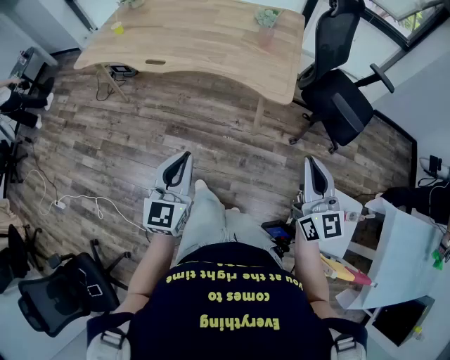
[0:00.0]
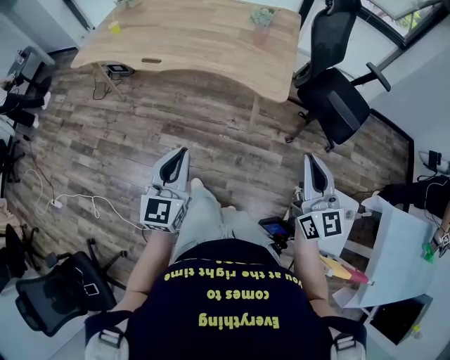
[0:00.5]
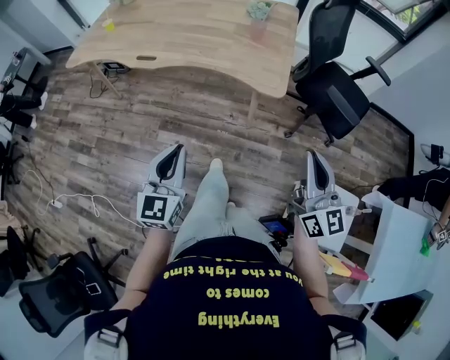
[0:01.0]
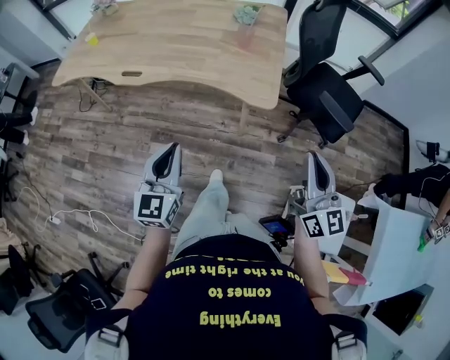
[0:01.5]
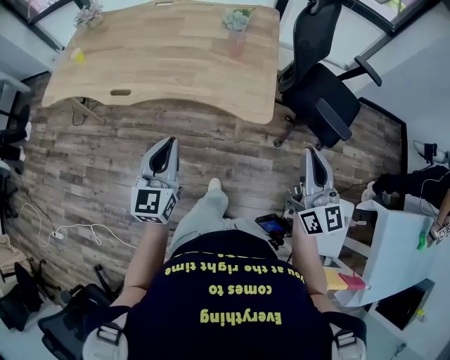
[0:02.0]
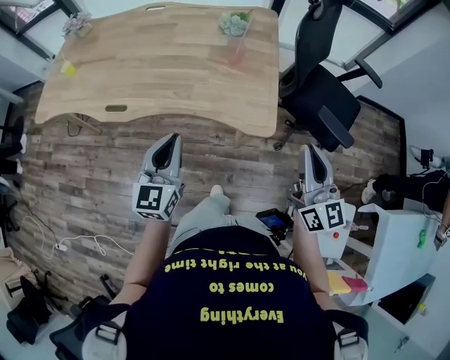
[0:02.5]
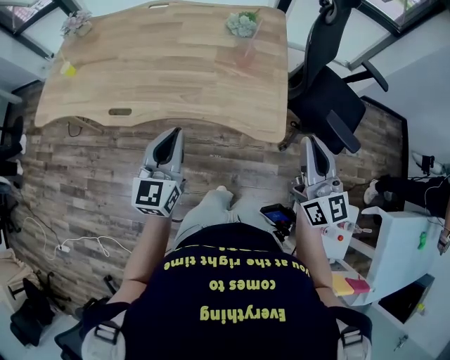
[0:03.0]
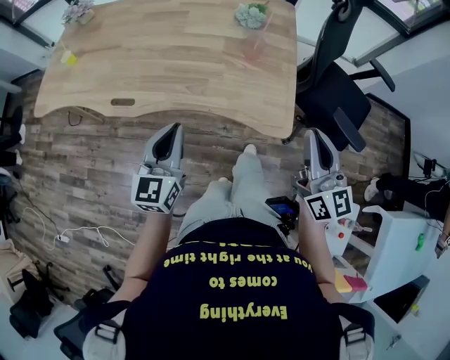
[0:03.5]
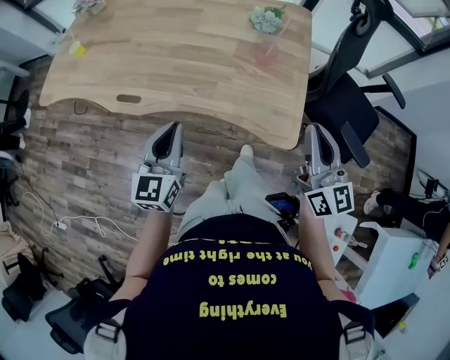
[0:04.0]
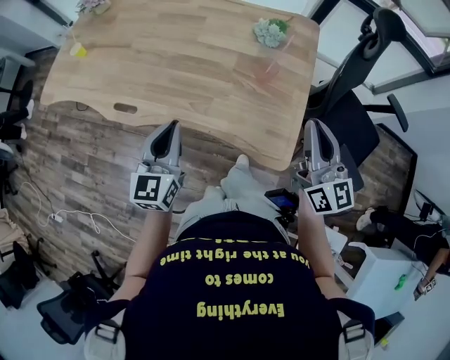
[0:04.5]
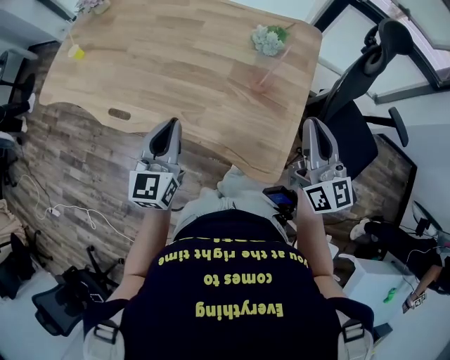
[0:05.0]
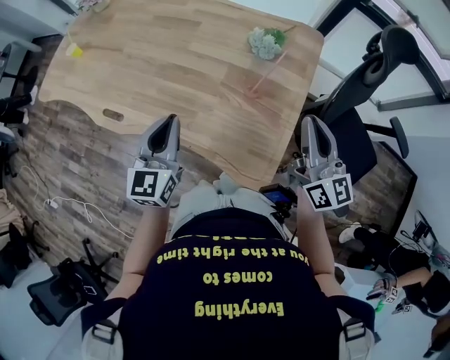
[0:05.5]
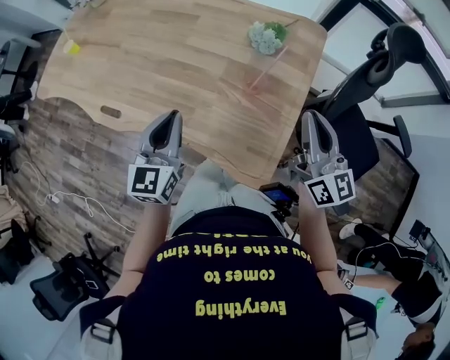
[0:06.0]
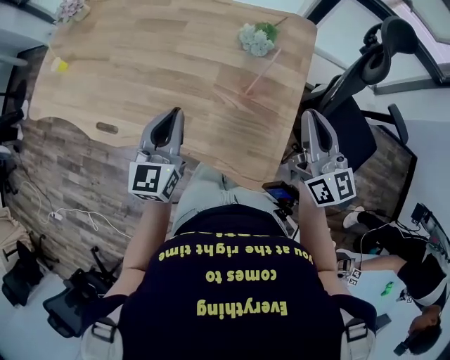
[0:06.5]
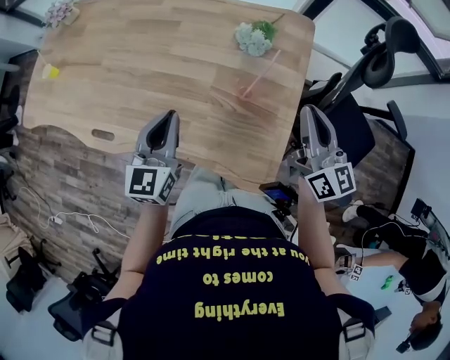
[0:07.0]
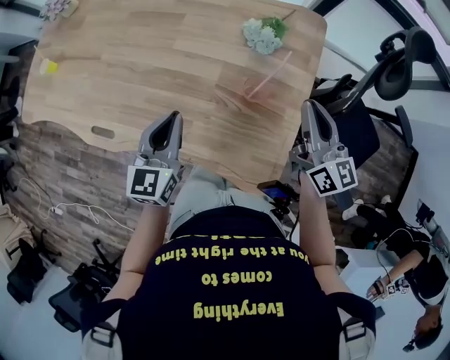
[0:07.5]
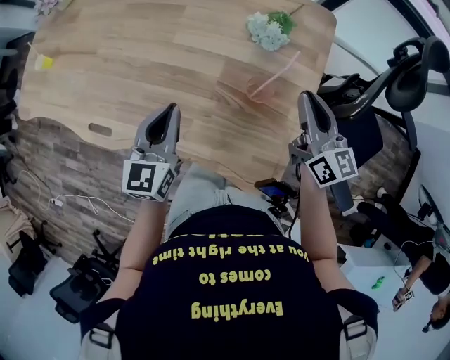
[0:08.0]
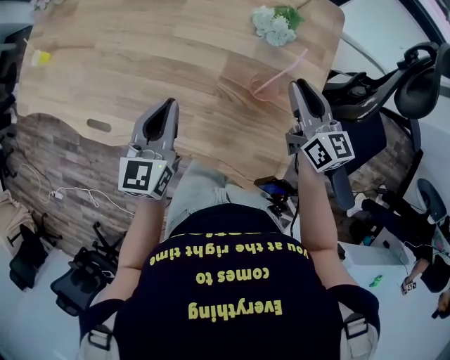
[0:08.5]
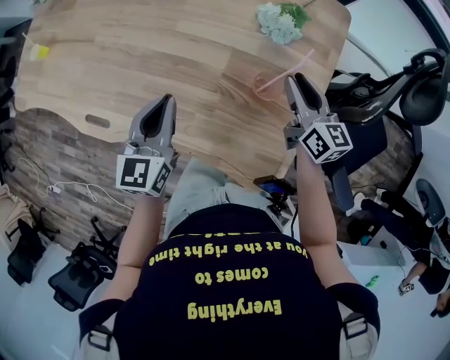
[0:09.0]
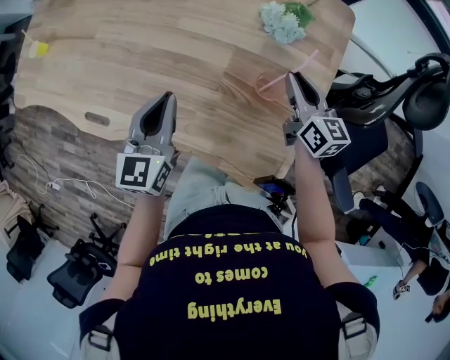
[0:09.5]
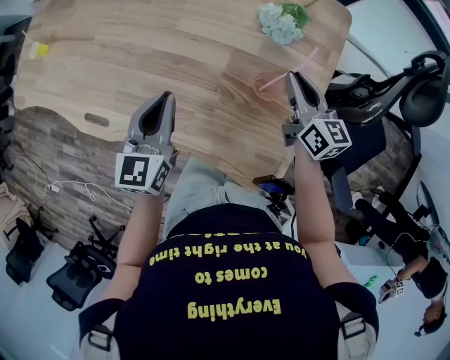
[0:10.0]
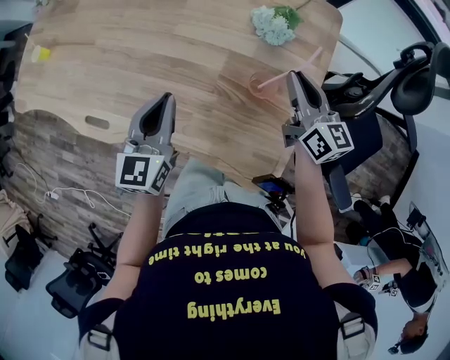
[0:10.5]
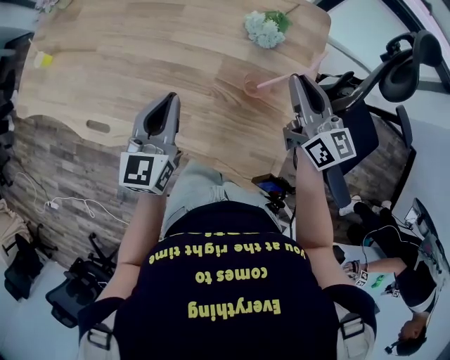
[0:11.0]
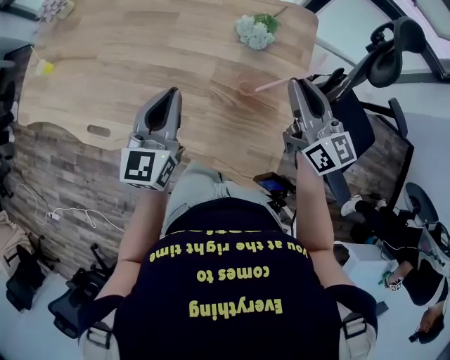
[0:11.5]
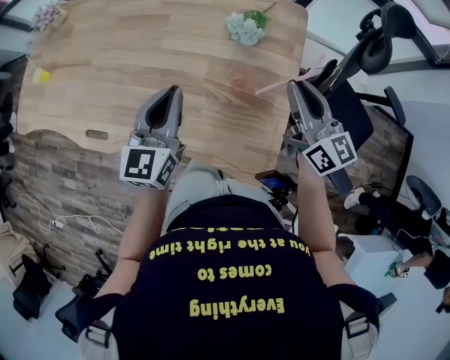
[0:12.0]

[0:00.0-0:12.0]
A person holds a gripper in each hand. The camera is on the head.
0:00.0 to 0:02.0: The two grippers go about 20 cm forward.
0:02.0 to 0:04.0: The grippers both shift forward and to the left by roughly 20 cm.
0:04.0 to 0:06.0: The two grippers go roughly 20 cm forward and to the right.
0:06.0 to 0:08.0: The grippers both shift forward and downward by some 15 cm.
0:08.0 to 0:10.0: The right gripper shifts approximately 10 cm downward.
0:10.0 to 0:12.0: The left gripper goes about 10 cm upward and to the right. The right gripper moves upward and backward, roughly 15 cm.

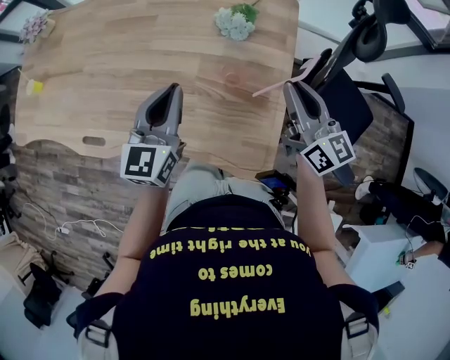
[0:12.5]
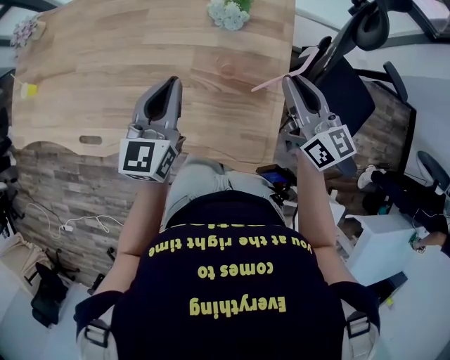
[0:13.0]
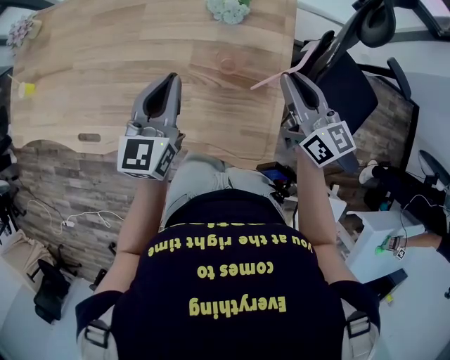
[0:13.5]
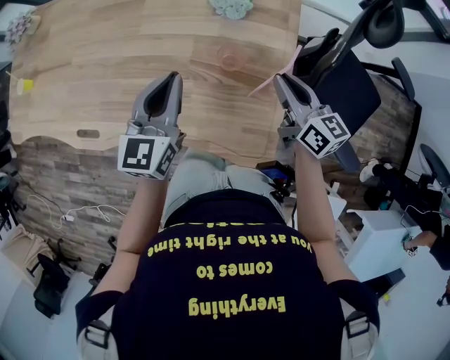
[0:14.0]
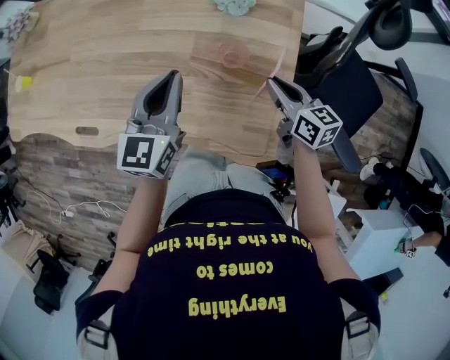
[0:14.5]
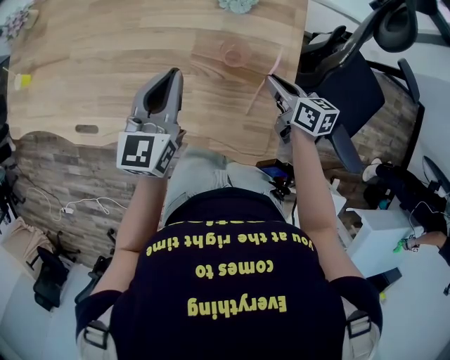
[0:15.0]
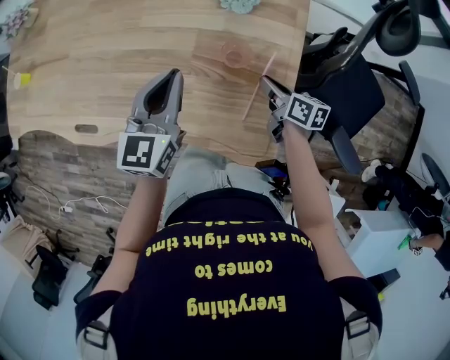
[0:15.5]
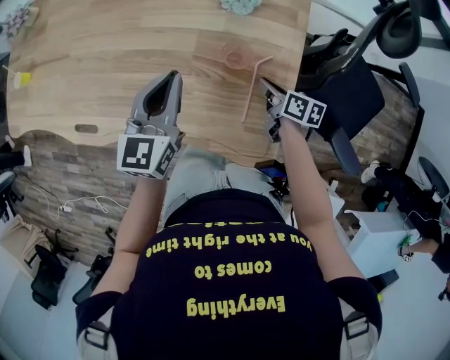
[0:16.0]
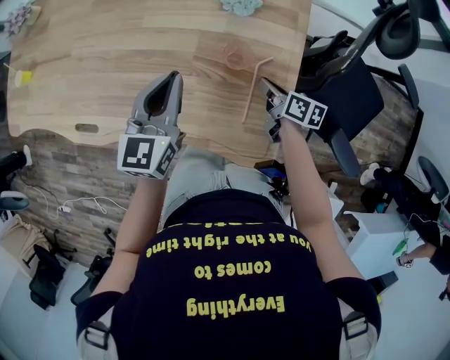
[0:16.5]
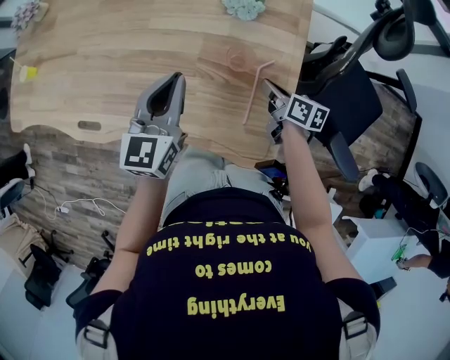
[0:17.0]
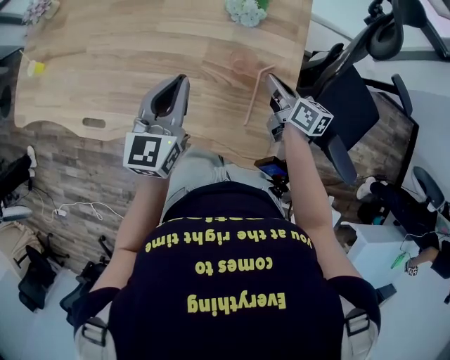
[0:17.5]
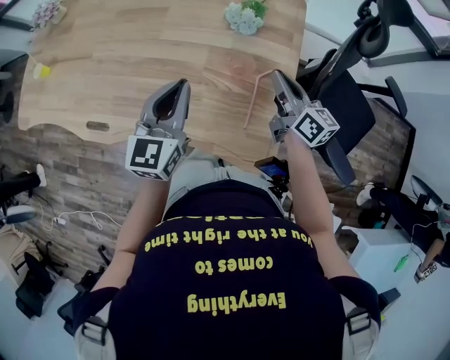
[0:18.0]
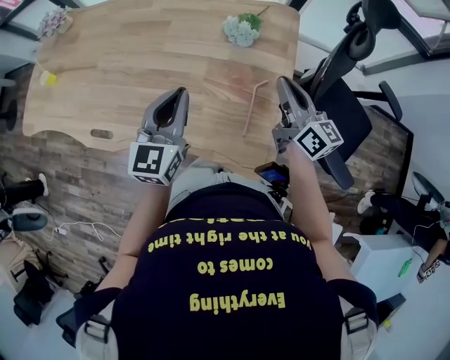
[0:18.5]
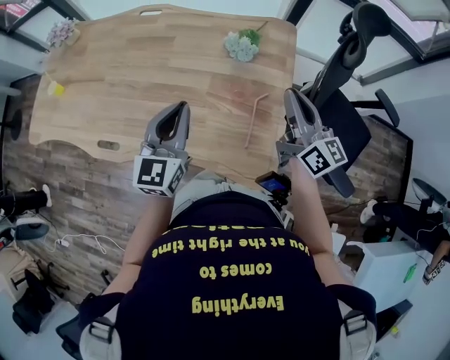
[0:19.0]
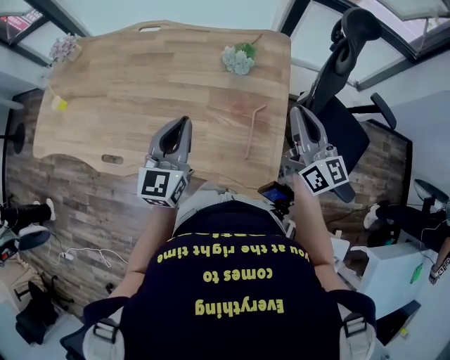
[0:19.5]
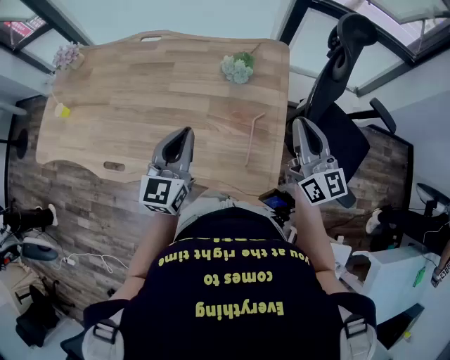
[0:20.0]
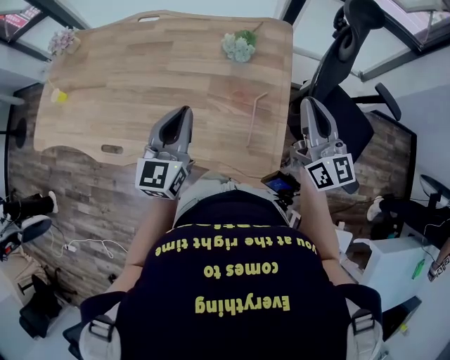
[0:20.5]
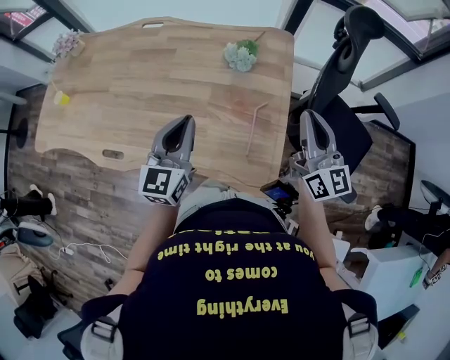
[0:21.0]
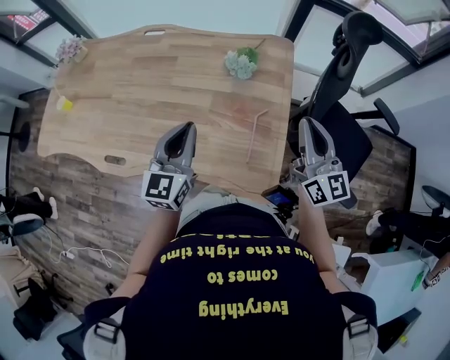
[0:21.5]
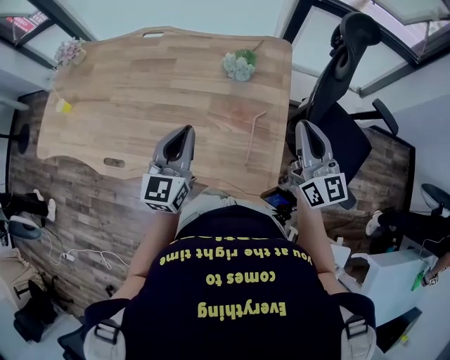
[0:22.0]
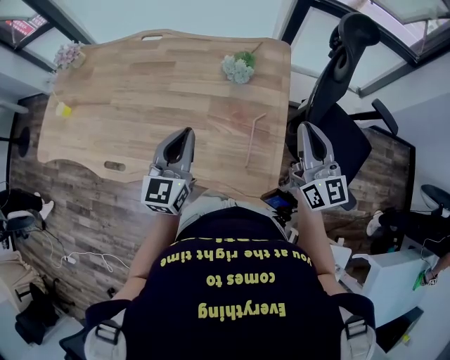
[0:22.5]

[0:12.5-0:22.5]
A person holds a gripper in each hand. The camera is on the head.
0:12.5 to 0:14.5: The right gripper shifts about 15 cm downward, and turns by approximately 30 degrees.
0:14.5 to 0:16.5: The right gripper is displaced downward by about 10 cm, and turns by about 30 degrees.
0:16.5 to 0:18.5: The left gripper shifts about 5 cm upward; the right gripper heads upward, covering about 25 cm, and points its fingers roughly 30 degrees further upward.
0:18.5 to 0:20.5: The right gripper shifts some 10 cm upward and backward, and turns by approximately 20 degrees.
0:20.5 to 0:22.5: Both grippers stay about where they are.

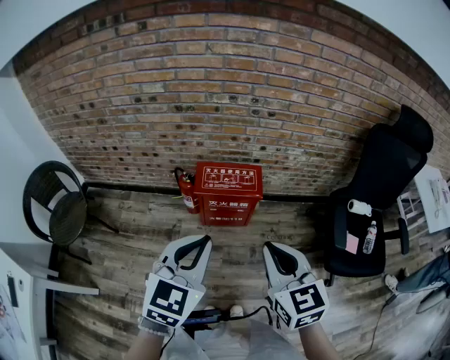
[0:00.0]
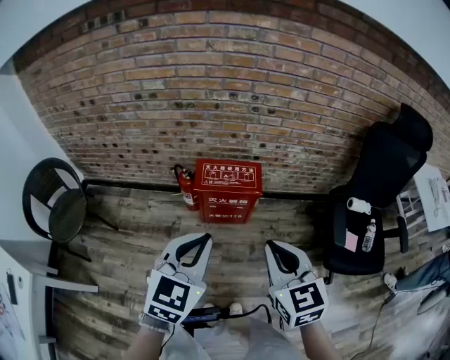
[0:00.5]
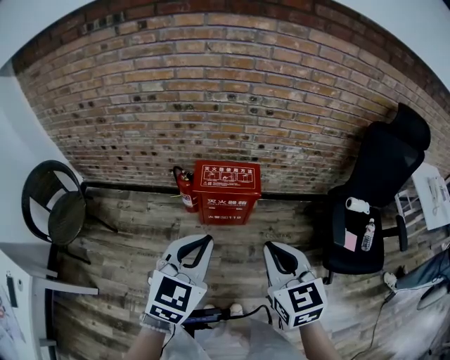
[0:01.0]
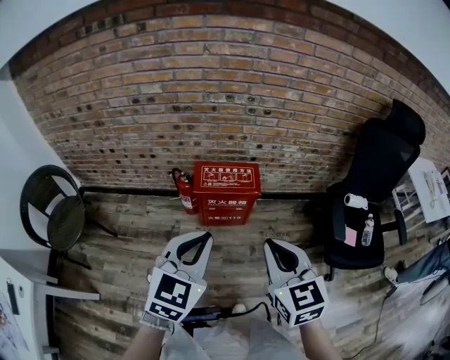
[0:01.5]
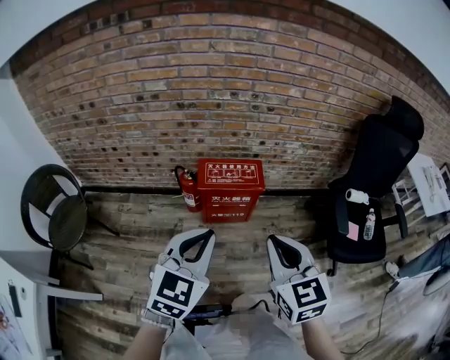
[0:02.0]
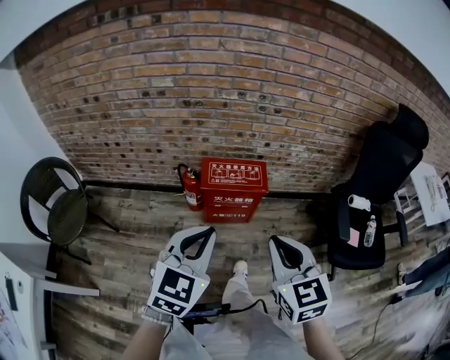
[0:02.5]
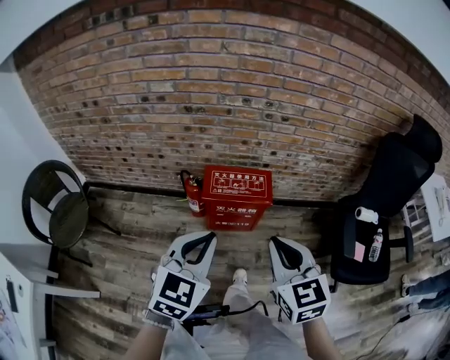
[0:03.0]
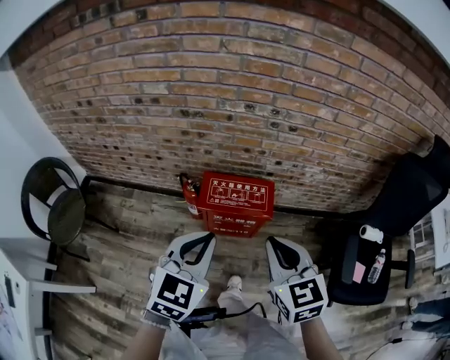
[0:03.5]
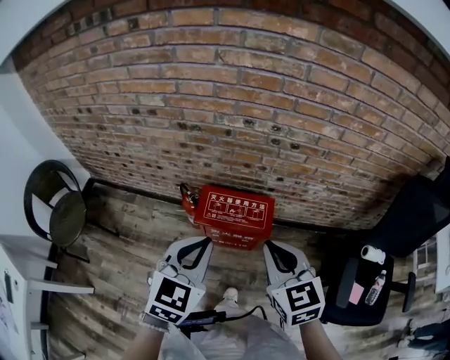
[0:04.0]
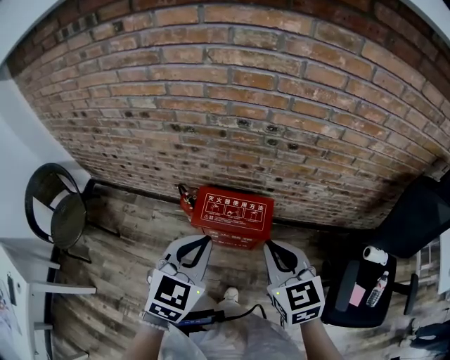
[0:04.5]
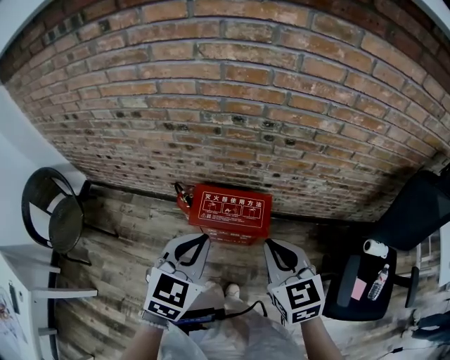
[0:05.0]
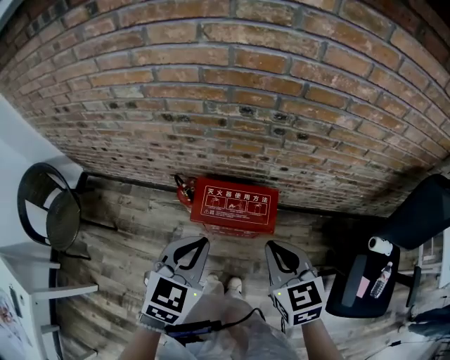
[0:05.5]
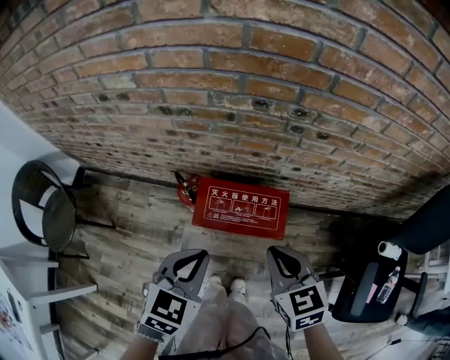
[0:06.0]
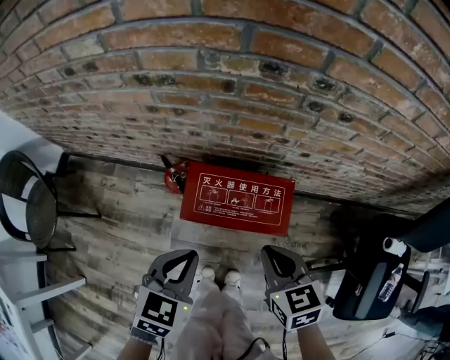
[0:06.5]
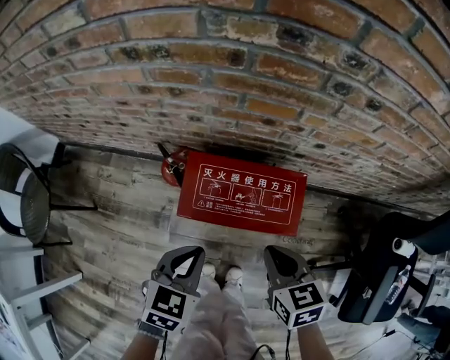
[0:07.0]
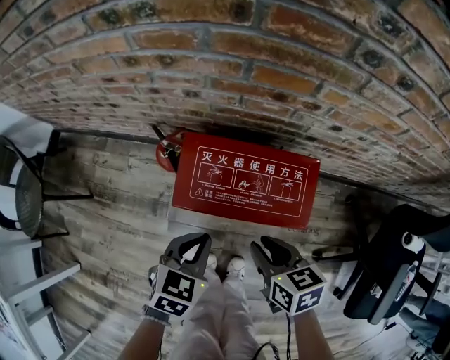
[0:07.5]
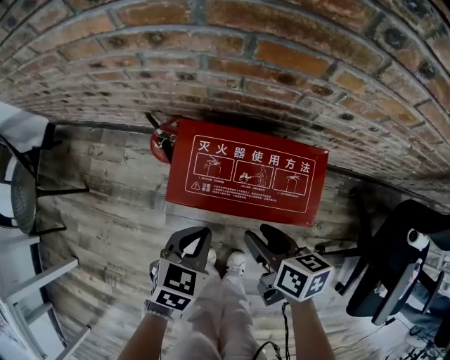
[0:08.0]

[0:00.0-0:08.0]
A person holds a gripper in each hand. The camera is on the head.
0:00.0 to 0:02.0: The grippers move only a little.
0:02.0 to 0:04.0: The two grippers go some 25 cm forward.
0:04.0 to 0:06.0: The two grippers go some 15 cm downward and forward.
0:06.0 to 0:08.0: Both grippers move downward, some 30 cm. The right gripper twists approximately 40 degrees clockwise, seen from behind, and opens.
